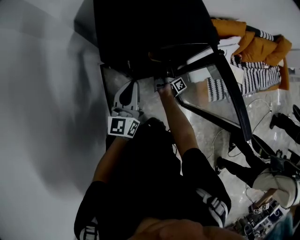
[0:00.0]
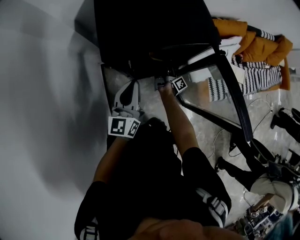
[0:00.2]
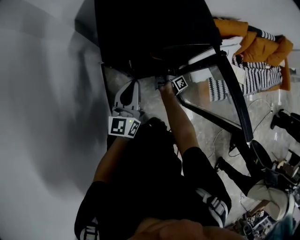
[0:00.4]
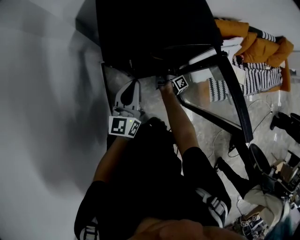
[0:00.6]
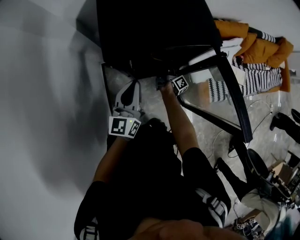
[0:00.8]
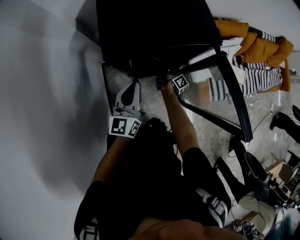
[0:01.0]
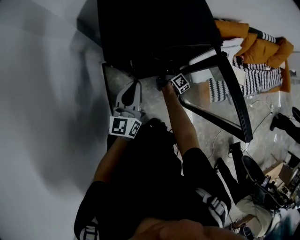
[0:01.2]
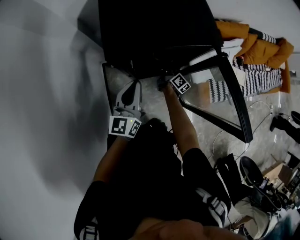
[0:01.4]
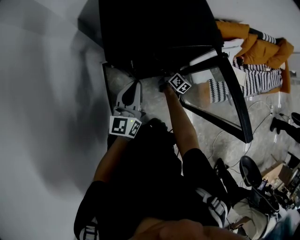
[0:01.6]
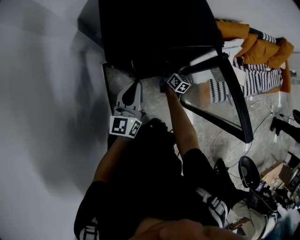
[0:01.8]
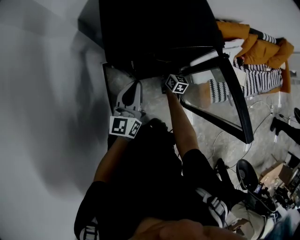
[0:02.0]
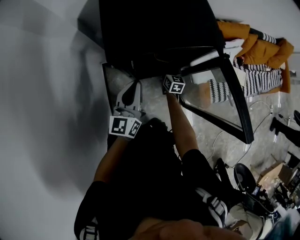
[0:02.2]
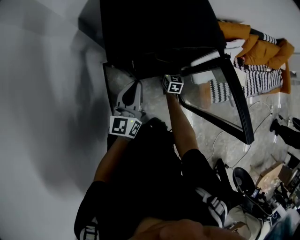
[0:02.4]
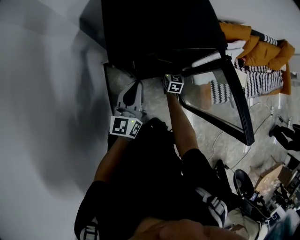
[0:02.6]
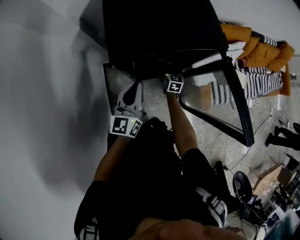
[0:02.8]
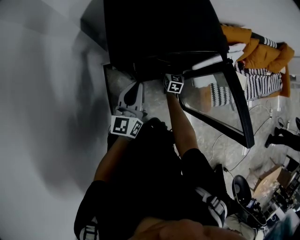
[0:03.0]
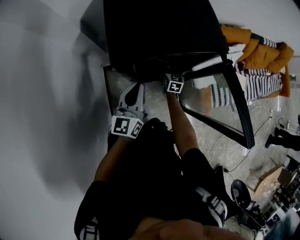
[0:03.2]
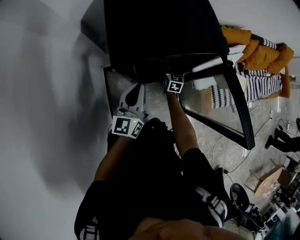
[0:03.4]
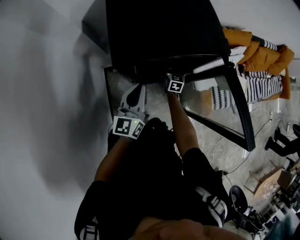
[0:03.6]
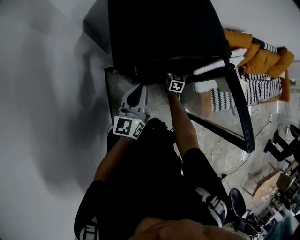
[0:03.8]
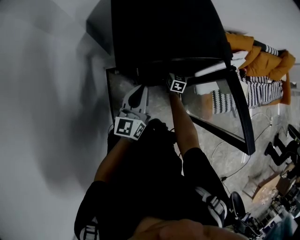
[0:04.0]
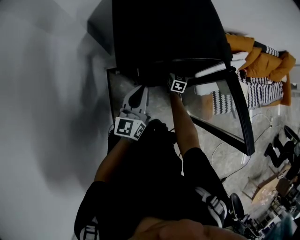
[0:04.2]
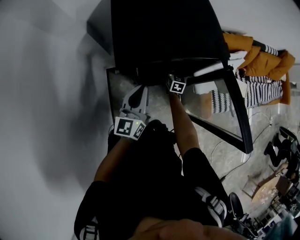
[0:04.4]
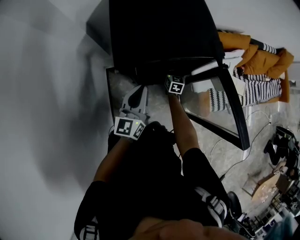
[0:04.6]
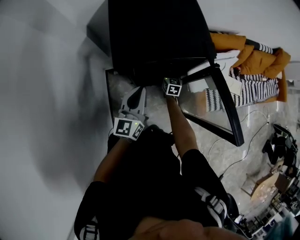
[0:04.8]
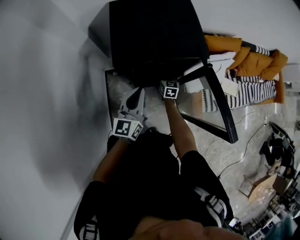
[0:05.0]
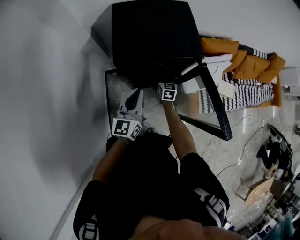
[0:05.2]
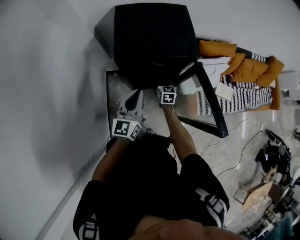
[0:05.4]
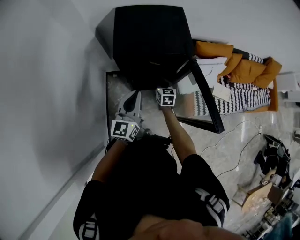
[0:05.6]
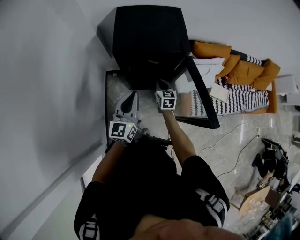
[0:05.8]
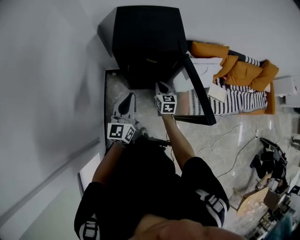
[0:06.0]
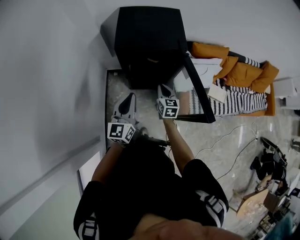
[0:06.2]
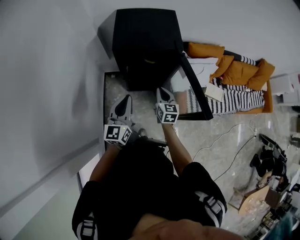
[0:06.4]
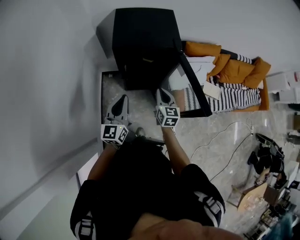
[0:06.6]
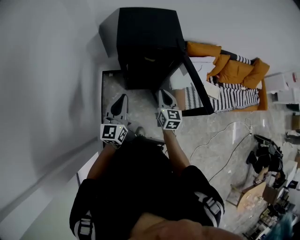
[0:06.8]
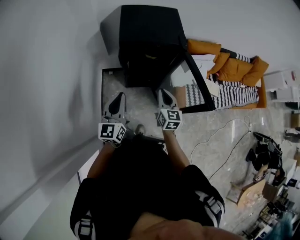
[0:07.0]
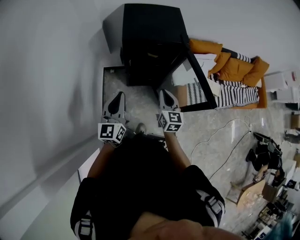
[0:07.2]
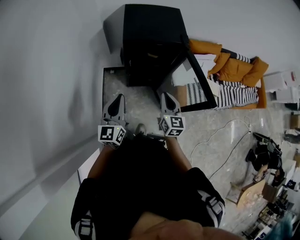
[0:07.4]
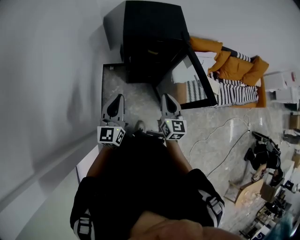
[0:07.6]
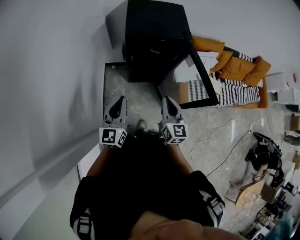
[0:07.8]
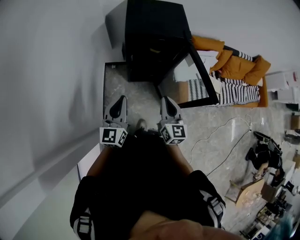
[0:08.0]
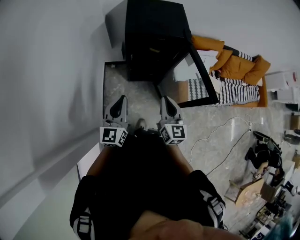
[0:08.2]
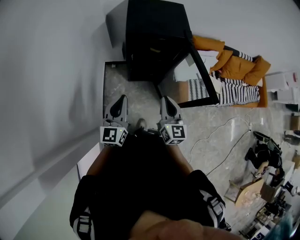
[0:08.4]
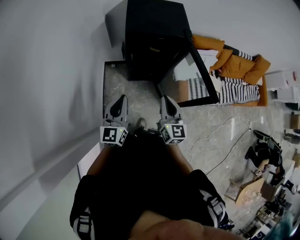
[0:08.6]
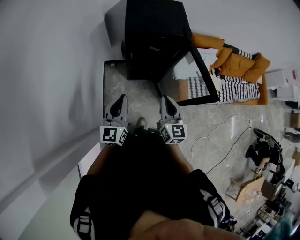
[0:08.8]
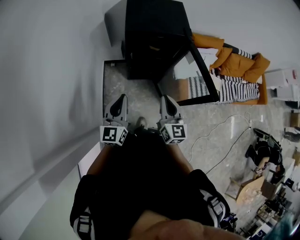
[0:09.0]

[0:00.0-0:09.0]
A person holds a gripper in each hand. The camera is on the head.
0:00.0 to 0:01.6: The right gripper rolls counterclockwise, seen from behind, by roughly 40 degrees.
0:01.6 to 0:03.0: The right gripper rolls counterclockwise, seen from behind, by roughly 40 degrees.
0:03.0 to 0:04.4: The grippers make only small movements.
0:04.4 to 0:06.0: The right gripper travels upward and backward by roughly 35 cm, and closes up. Meanwhile the left gripper travels backward and upward by about 20 cm.
0:06.0 to 0:07.6: The right gripper moves backward and upward, some 25 cm. Meanwhile the left gripper travels backward and to the left by approximately 15 cm.
0:07.6 to 0:09.0: The grippers move only a little.

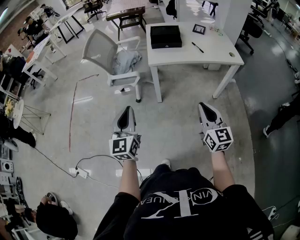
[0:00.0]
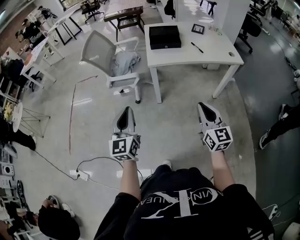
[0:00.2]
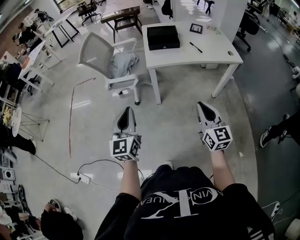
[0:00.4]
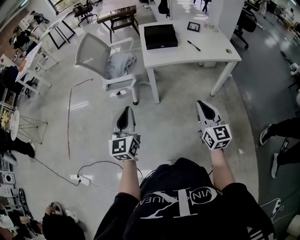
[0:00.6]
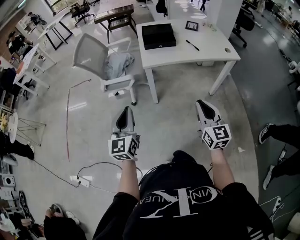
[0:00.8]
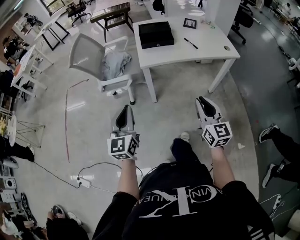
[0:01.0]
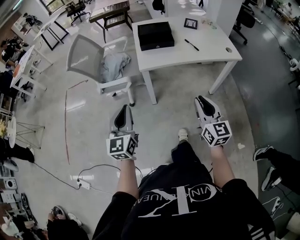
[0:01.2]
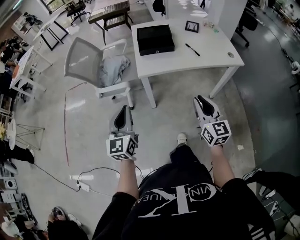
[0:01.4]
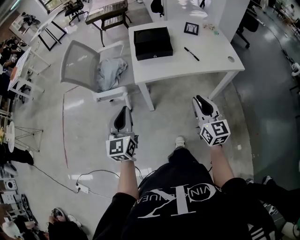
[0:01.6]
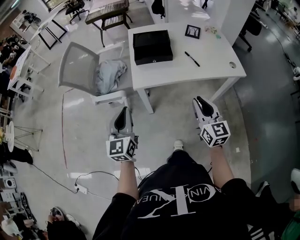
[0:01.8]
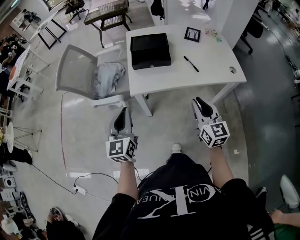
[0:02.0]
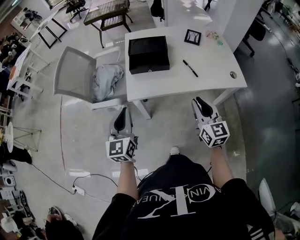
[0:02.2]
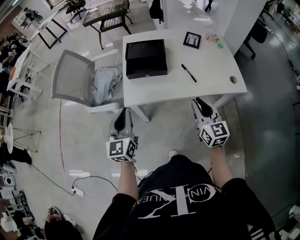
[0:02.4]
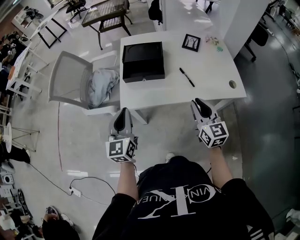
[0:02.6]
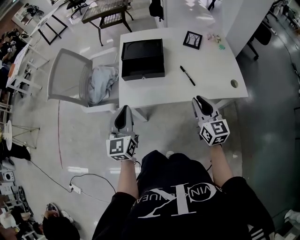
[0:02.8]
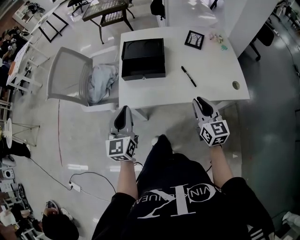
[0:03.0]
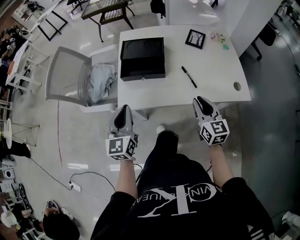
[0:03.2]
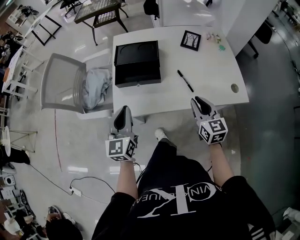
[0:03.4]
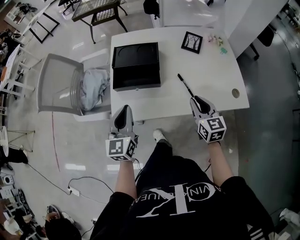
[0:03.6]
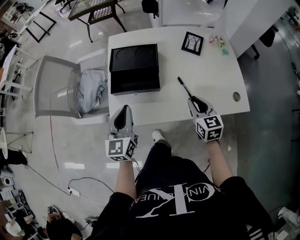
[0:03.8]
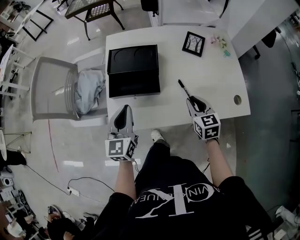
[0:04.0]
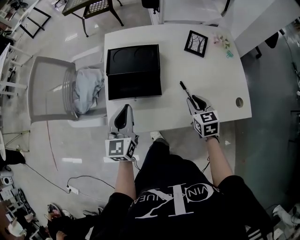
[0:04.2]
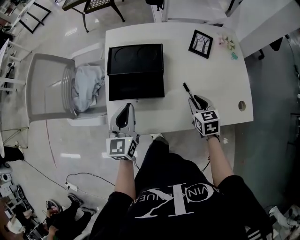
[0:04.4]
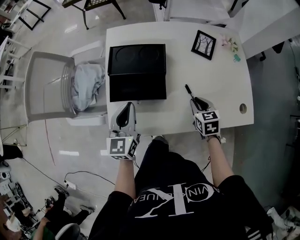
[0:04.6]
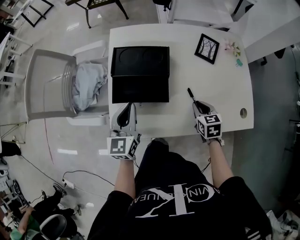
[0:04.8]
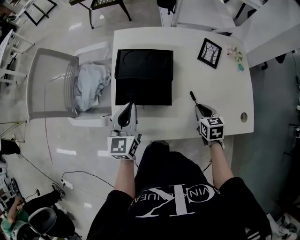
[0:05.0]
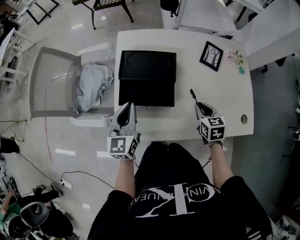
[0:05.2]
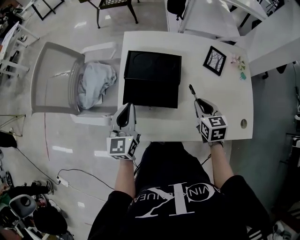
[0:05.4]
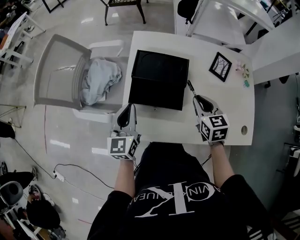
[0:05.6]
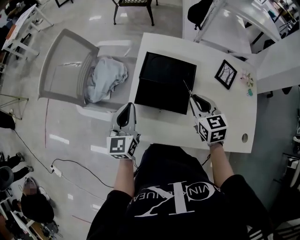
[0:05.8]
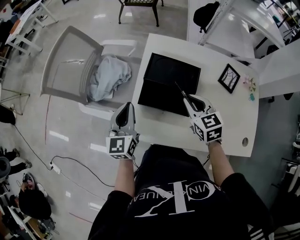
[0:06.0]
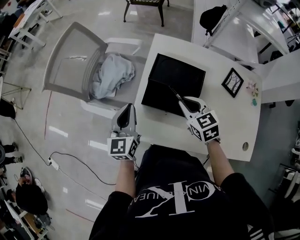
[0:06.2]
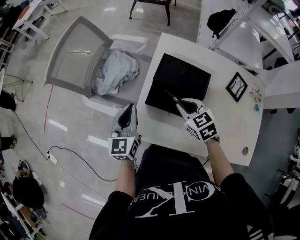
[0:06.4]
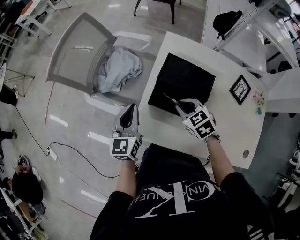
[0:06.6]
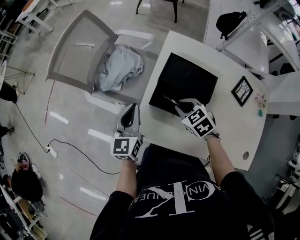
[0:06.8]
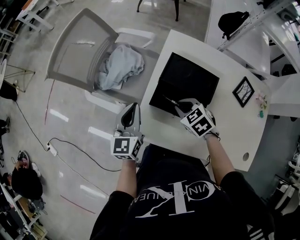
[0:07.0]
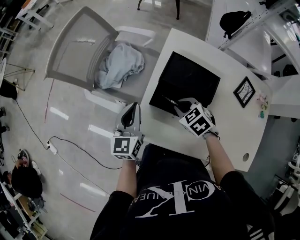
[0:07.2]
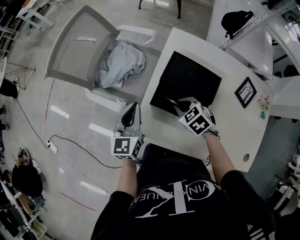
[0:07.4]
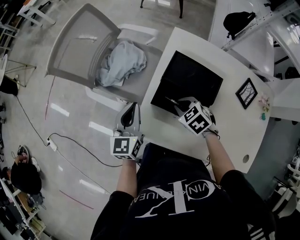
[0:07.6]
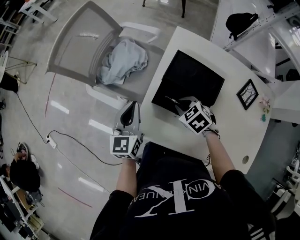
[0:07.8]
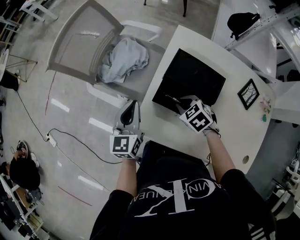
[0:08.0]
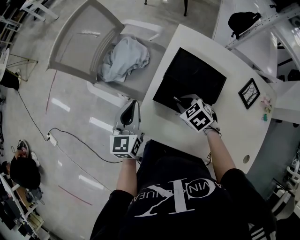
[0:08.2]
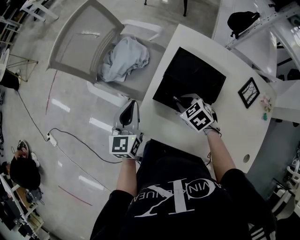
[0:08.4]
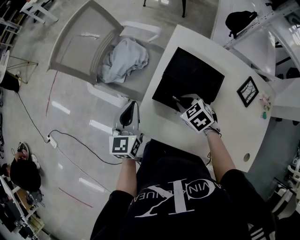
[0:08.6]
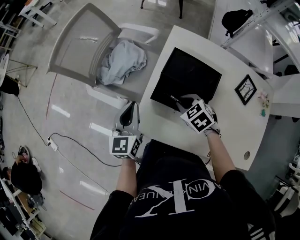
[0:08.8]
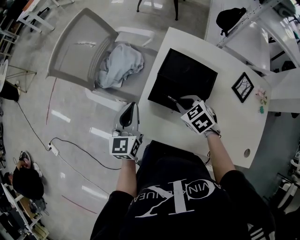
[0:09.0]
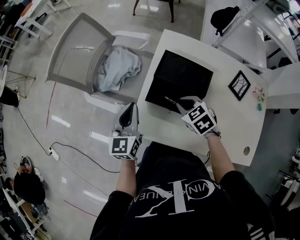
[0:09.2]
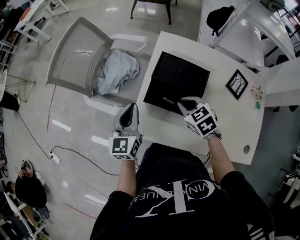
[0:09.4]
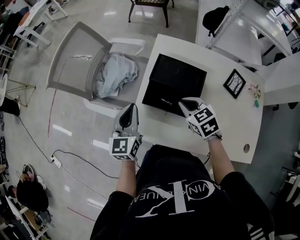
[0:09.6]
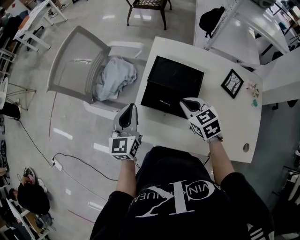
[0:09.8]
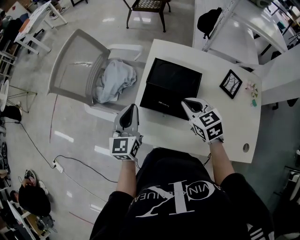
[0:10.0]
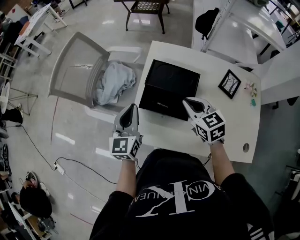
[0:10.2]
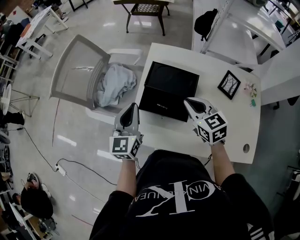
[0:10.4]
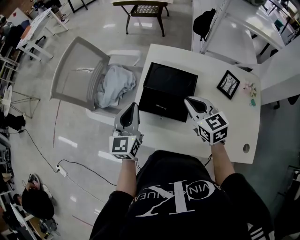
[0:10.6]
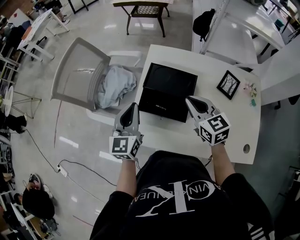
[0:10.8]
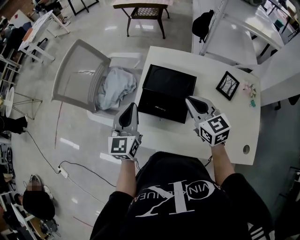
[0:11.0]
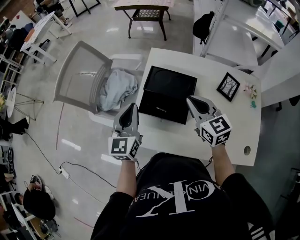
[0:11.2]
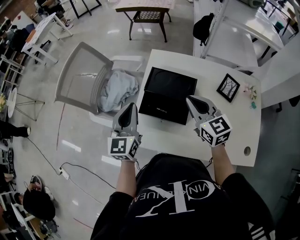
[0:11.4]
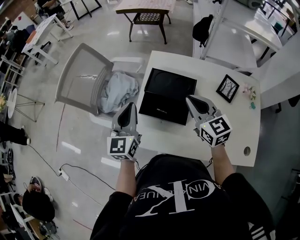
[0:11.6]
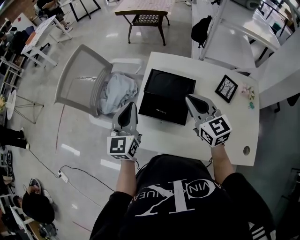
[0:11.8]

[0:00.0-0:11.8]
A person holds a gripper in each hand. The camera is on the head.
0:00.0 to 0:01.4: The two grippers go approximately 15 cm forward.
0:01.4 to 0:03.0: Both grippers move forward and to the right, about 25 cm.
0:03.0 to 0:04.4: Both grippers travel together forward and downward, roughly 20 cm. The right gripper angles its fingers downward, by about 30 degrees.
0:04.4 to 0:06.0: The left gripper moves to the left, roughly 10 cm, while the right gripper travels to the left, upward and forward by roughly 20 cm, and rotates approximately 30 degrees.
0:06.0 to 0:07.4: The right gripper travels downward and to the left by roughly 15 cm, and turns by roughly 40 degrees.
0:07.4 to 0:08.8: There are only small adjustments of the grippers.
0:08.8 to 0:10.4: The right gripper goes some 15 cm upward and to the right, and turns by some 40 degrees, while the left gripper shifts some 10 cm to the right and upward.
0:10.4 to 0:11.8: The right gripper is displaced upward by roughly 5 cm.

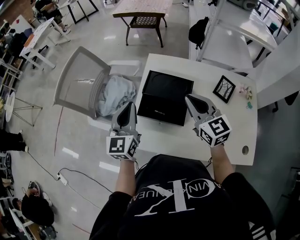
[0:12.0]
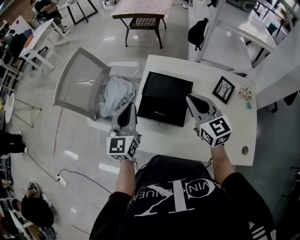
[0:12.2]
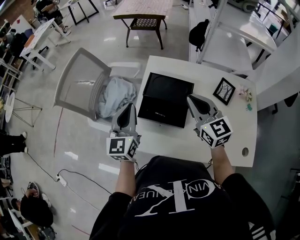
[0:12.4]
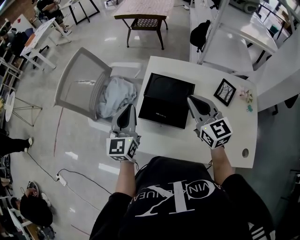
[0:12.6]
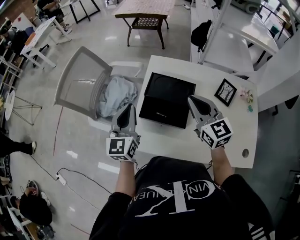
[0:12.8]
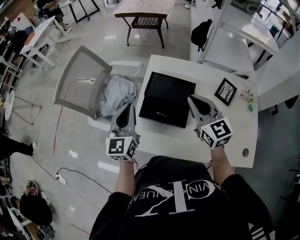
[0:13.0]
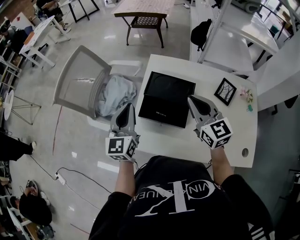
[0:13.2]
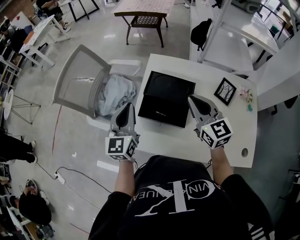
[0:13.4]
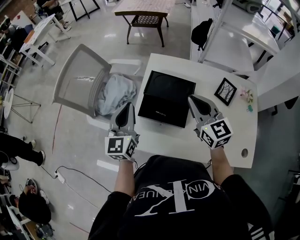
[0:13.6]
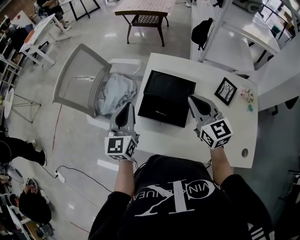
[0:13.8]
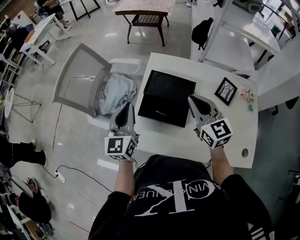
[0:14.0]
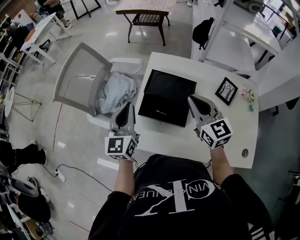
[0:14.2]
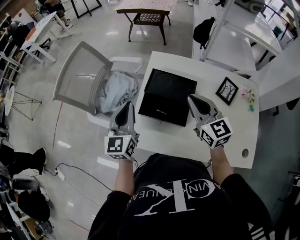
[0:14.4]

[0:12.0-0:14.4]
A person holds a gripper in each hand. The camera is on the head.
0:12.0 to 0:13.2: The grippers make only small movements.
0:13.2 to 0:14.4: Both grippers stay about where they are.
